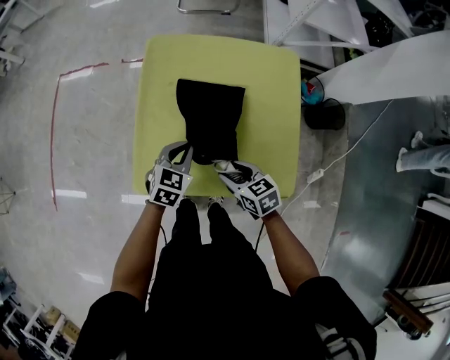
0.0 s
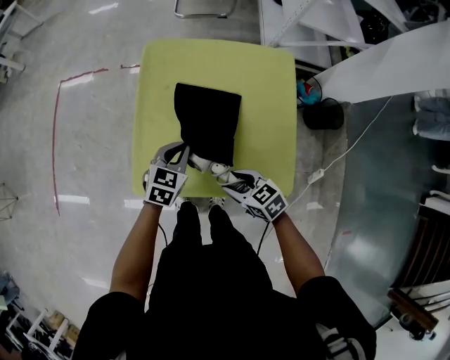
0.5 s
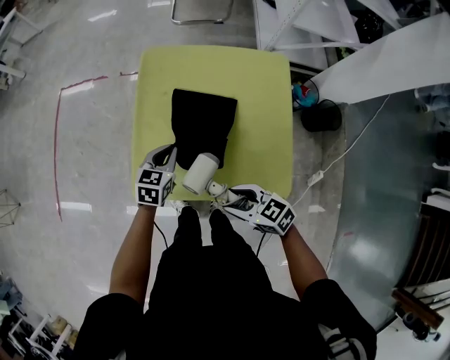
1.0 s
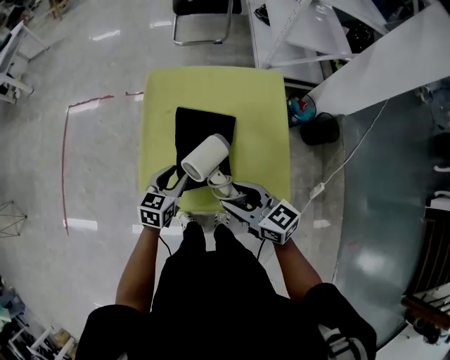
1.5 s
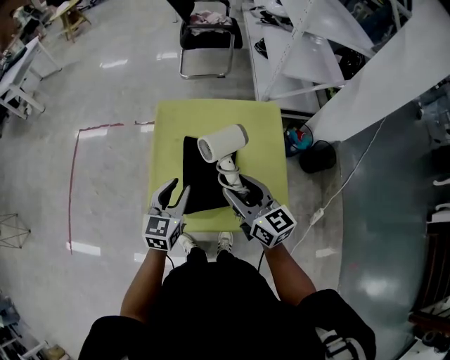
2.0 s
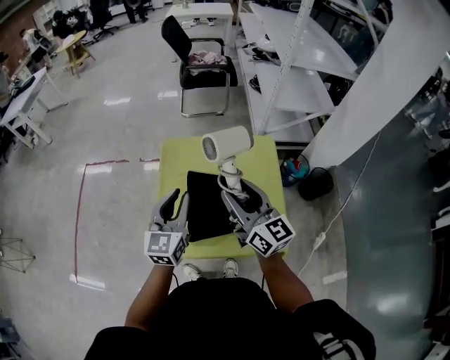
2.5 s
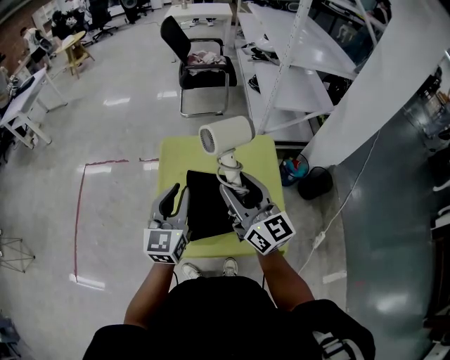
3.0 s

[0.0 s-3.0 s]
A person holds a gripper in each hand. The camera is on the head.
0.0 to 1.5 s: The left gripper opens its fingers, while the right gripper moves upward, roughly 15 cm, and rotates some 30 degrees.
1.5 to 3.0 s: The right gripper travels upward and forward by approximately 25 cm, and changes its angle by roughly 40 degrees. The left gripper is displaced upward by approximately 25 cm, and angles its fingers upward, by roughly 30 degrees.

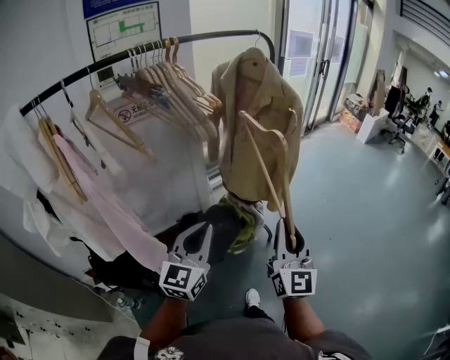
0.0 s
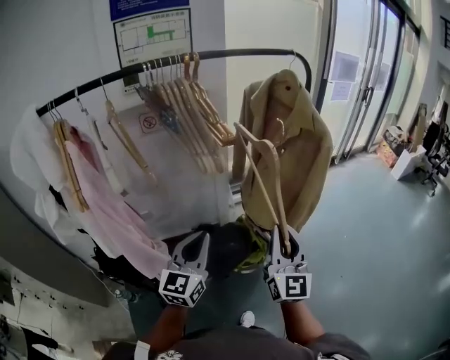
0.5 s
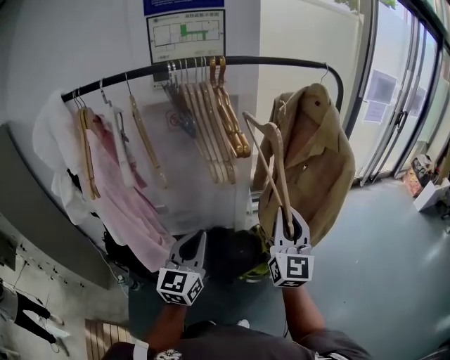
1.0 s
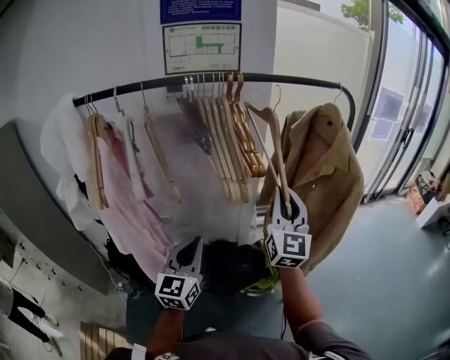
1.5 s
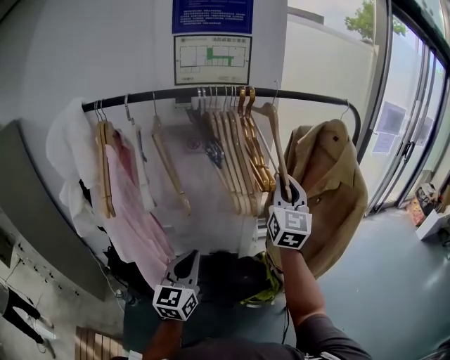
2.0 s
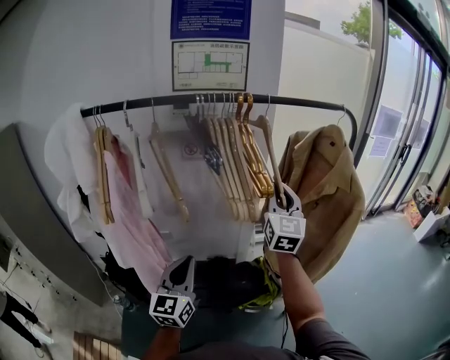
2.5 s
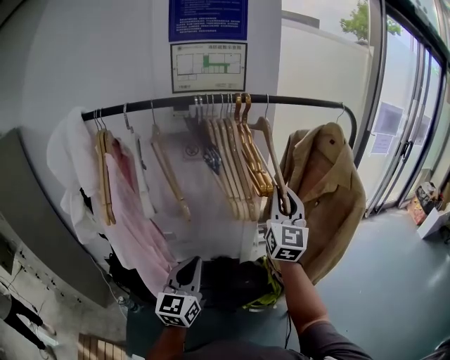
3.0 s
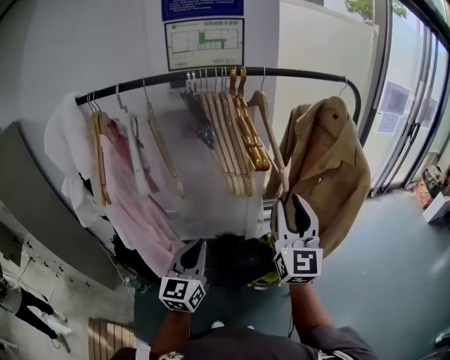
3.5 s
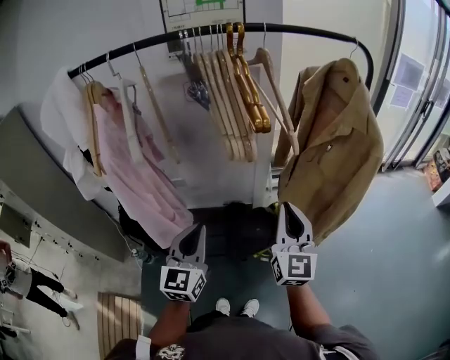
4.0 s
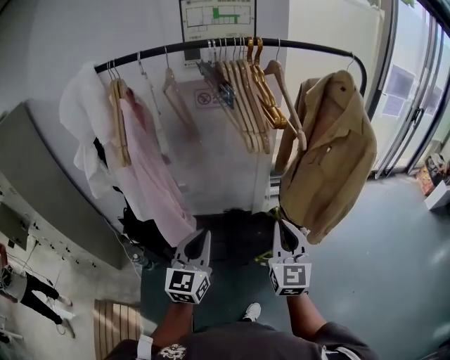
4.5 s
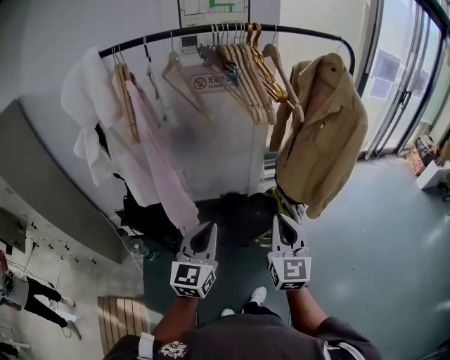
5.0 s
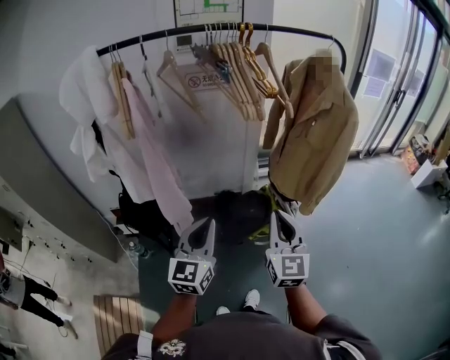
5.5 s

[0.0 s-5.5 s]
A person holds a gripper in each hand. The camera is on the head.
0.0 to 2.0 s: The left gripper moves about 10 cm, and swivels roughly 30 degrees, while the right gripper moves approximately 35 cm, and changes its angle by approximately 20 degrees.
2.0 to 3.5 s: The right gripper travels backward by some 10 cm.
3.5 to 5.5 s: The left gripper shifts roughly 15 cm backward. Meanwhile the right gripper is displaced backward and downward by about 25 cm, and closes up.

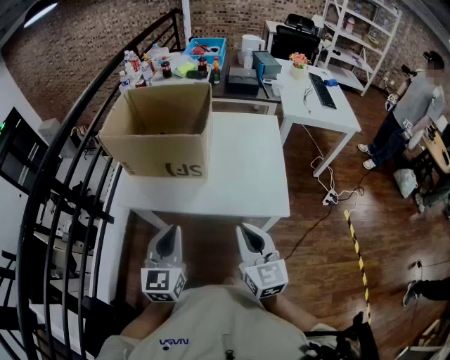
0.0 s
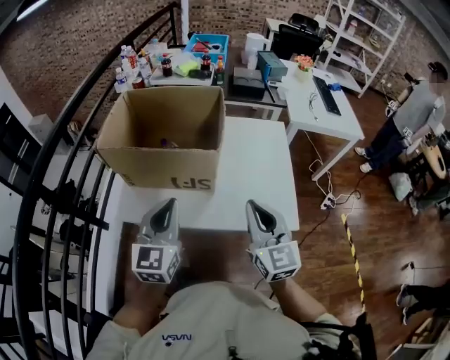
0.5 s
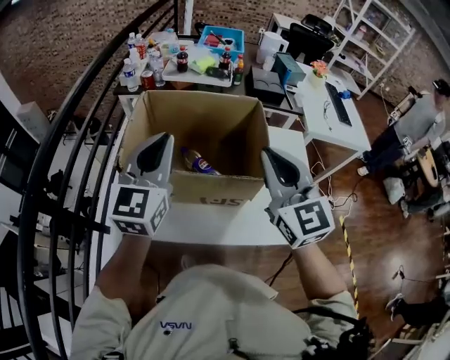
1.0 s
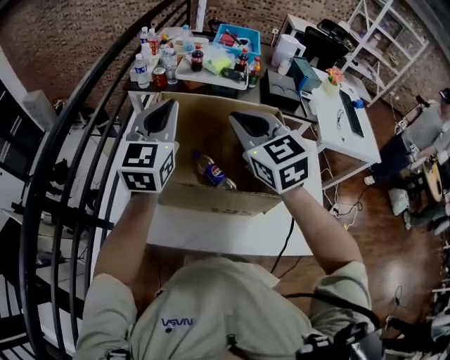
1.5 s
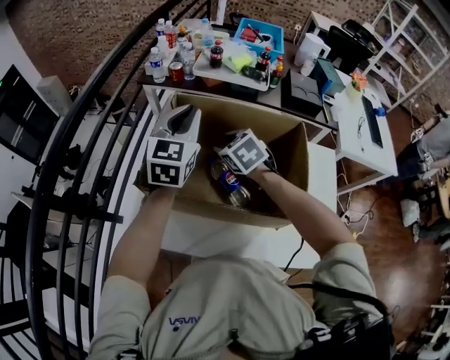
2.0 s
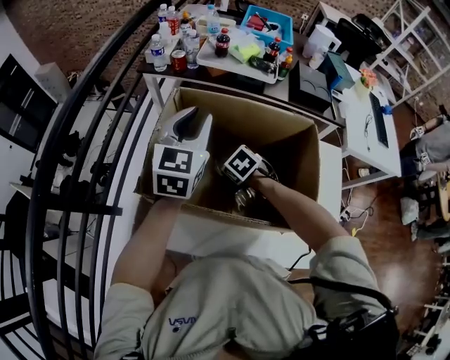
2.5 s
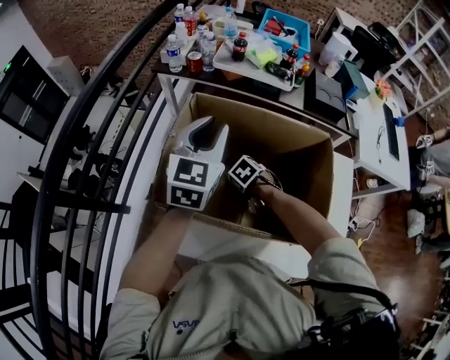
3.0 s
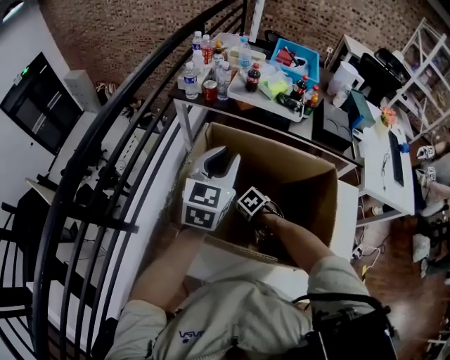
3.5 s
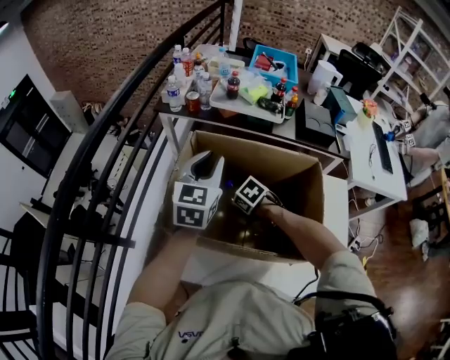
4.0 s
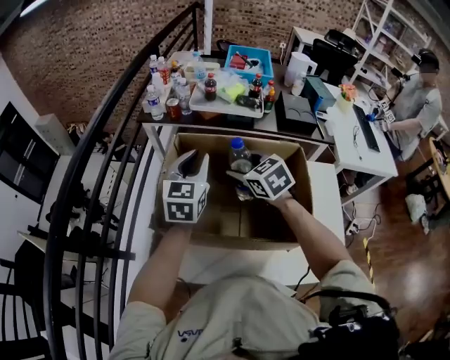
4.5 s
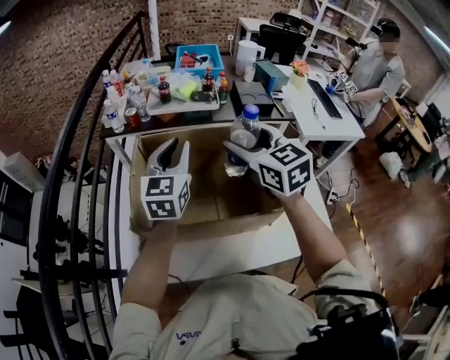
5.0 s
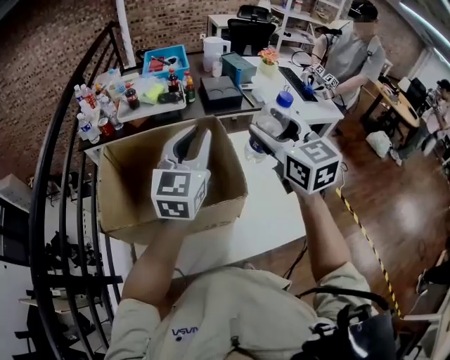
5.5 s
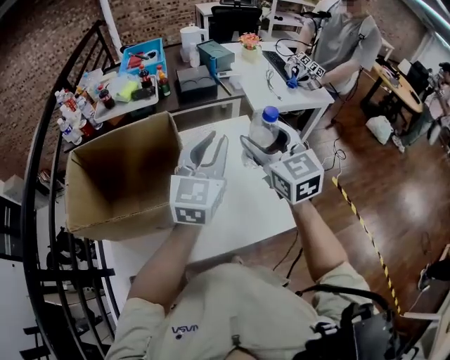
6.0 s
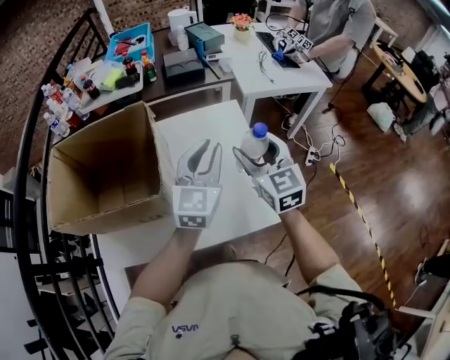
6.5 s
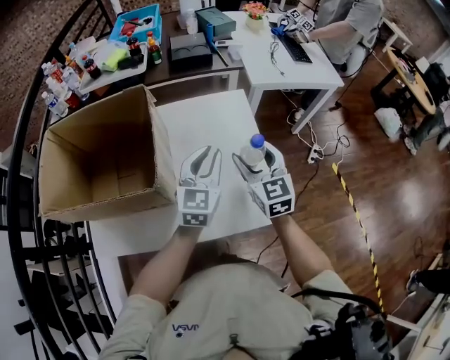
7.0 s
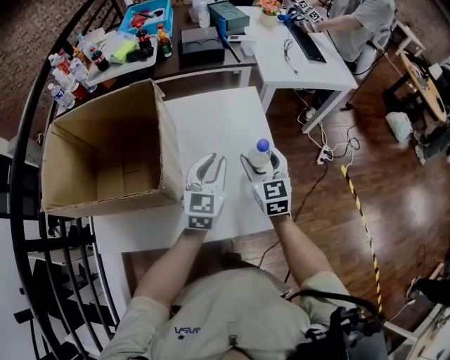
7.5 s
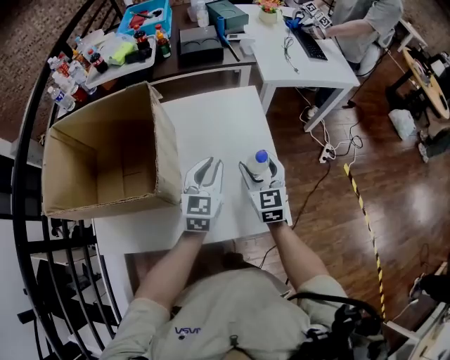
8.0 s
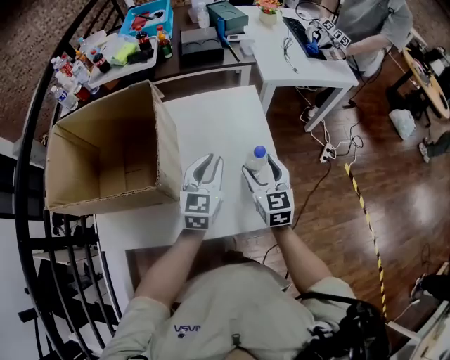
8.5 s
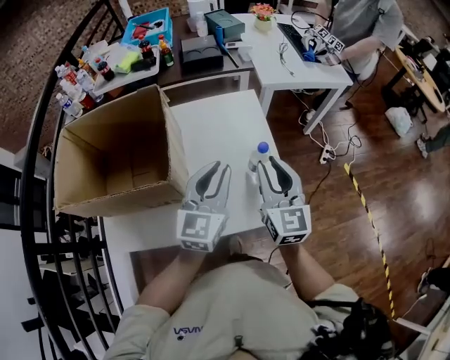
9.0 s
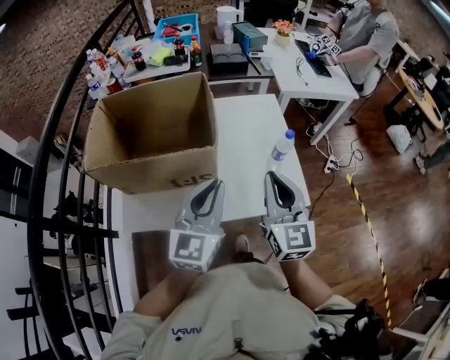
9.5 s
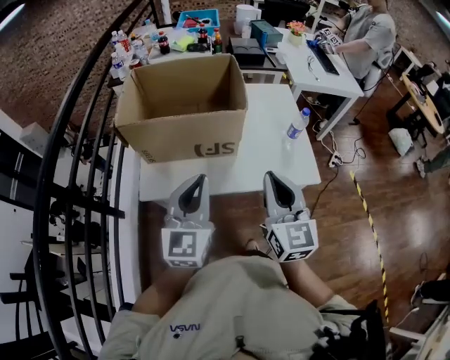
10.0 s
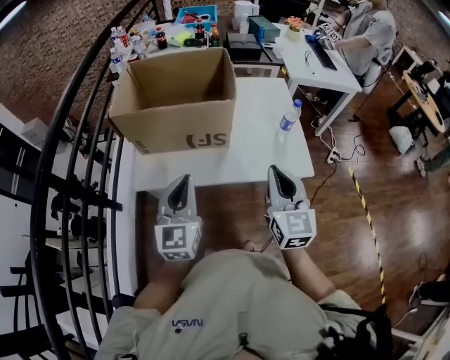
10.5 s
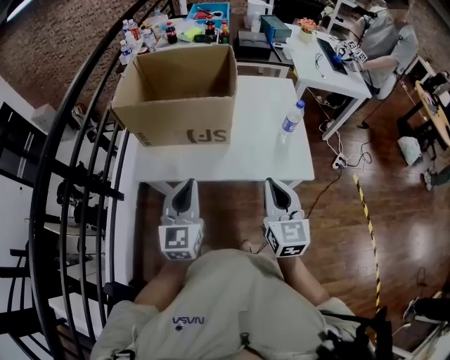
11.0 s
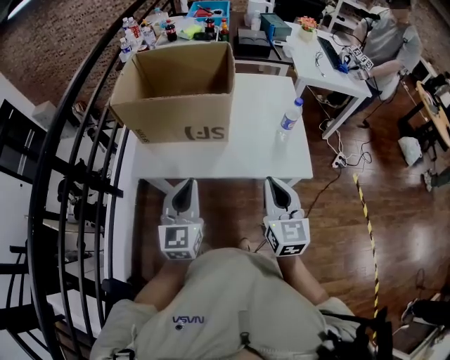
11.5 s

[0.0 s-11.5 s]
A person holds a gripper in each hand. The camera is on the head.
0.0 to 2.0 s: The pair of grippers is taken forward, approximately 60 cm. The right gripper tilts its fingers about 40 degrees downward, and opens.
2.0 to 4.0 s: The right gripper goes approximately 15 cm downward, swivels about 30 degrees, and opens its fingers.
4.0 to 6.0 s: The two grippers travel together, some 40 cm. The right gripper points its fingers approximately 60 degrees further upward; the left gripper turns by about 30 degrees.
6.0 to 7.5 s: Both grippers move downward, some 25 cm.
7.5 to 9.5 s: Both grippers move backward, upward and to the left, some 30 cm. The right gripper closes.
9.5 to 11.5 s: The right gripper moves backward and downward, roughly 15 cm, while the left gripper travels backward, to the left and downward by about 20 cm, and changes its angle by roughly 20 degrees.

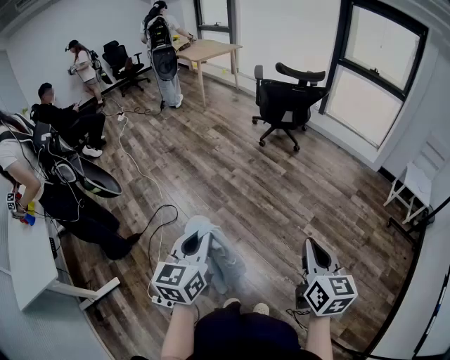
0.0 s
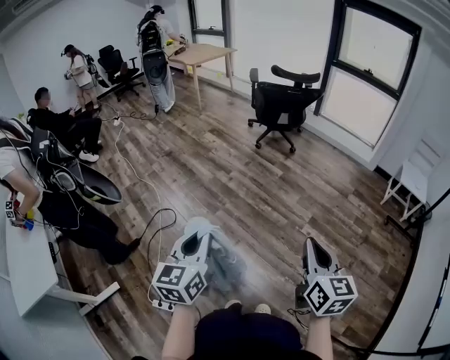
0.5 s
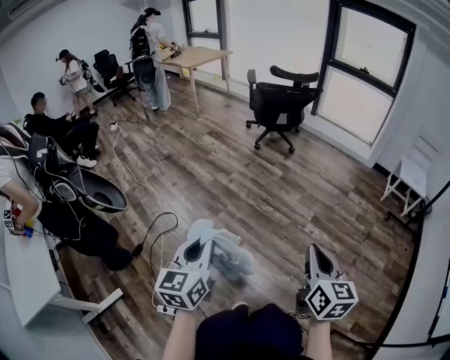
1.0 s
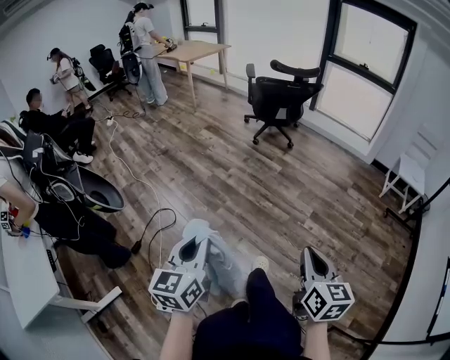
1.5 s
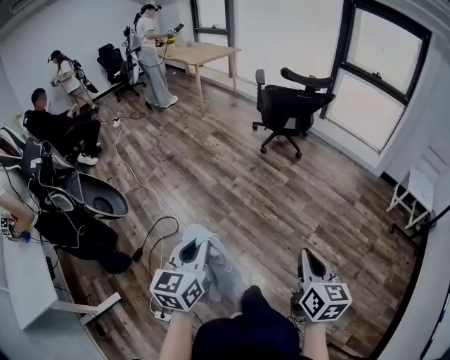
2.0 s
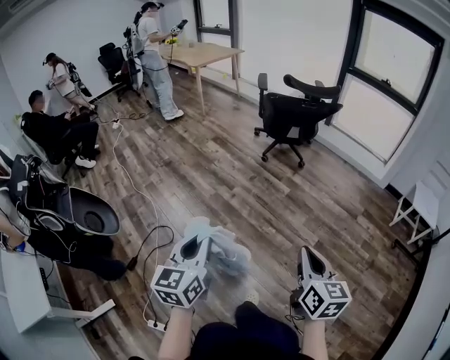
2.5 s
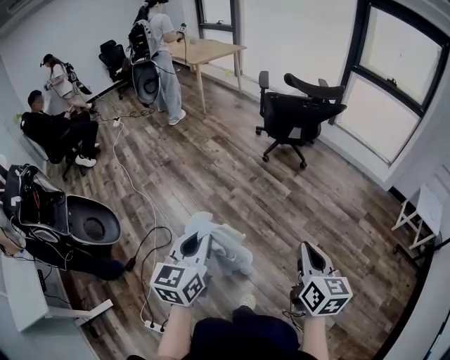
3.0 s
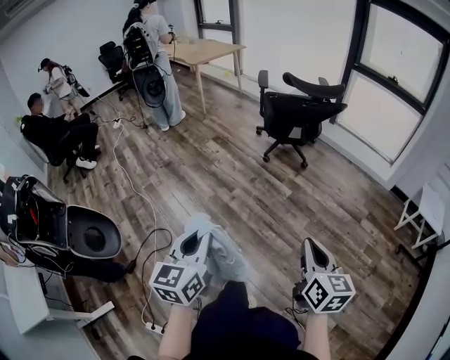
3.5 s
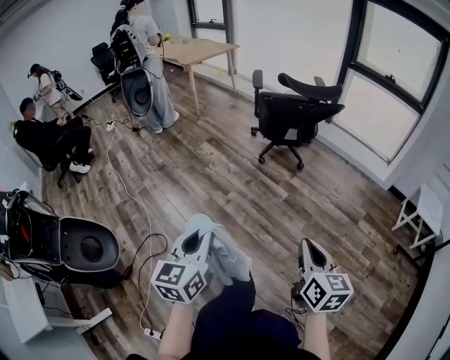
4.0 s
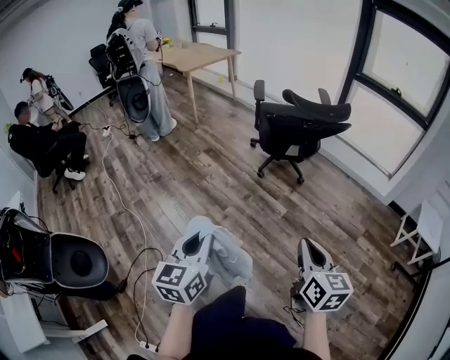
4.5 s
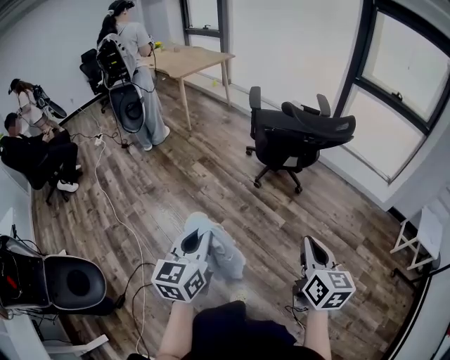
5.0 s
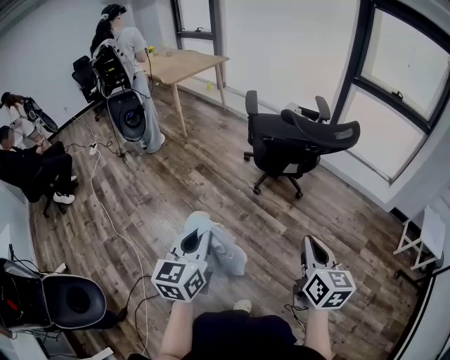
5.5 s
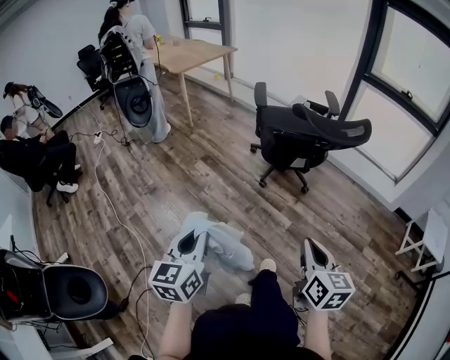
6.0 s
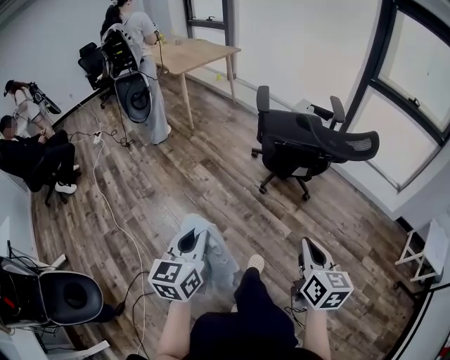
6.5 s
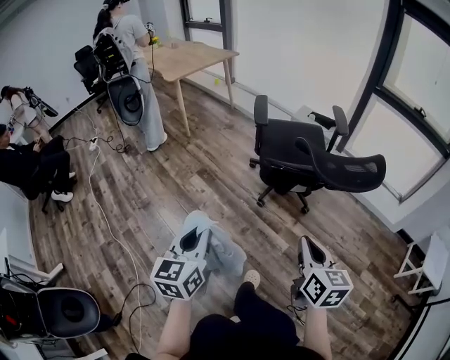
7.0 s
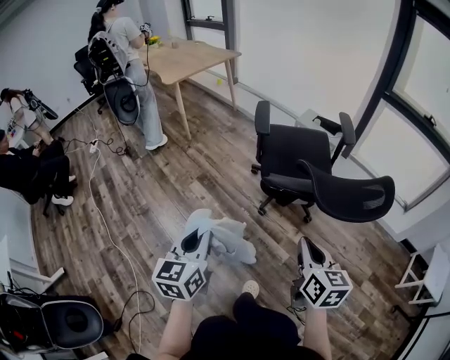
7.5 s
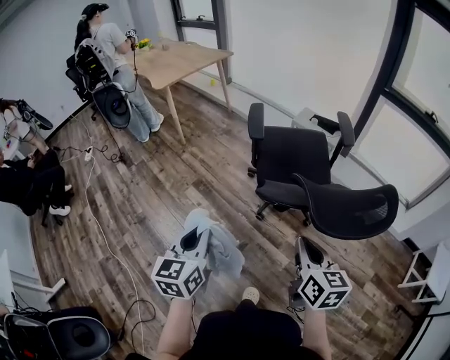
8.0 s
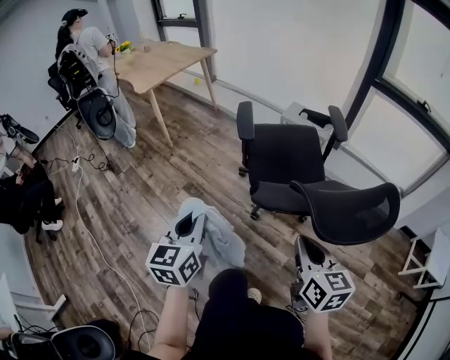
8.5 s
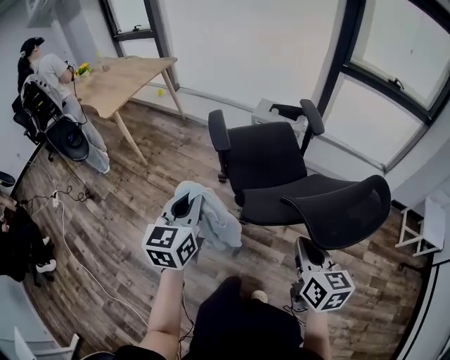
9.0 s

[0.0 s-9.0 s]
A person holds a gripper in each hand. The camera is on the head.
0.0 to 2.0 s: Both grippers travel together forward and to the left, approximately 10 cm.
2.0 to 4.5 s: Both grippers move forward, approximately 40 cm.
4.5 to 7.0 s: Both grippers travel together forward, approximately 35 cm.
7.0 to 9.0 s: The right gripper goes some 20 cm forward. The left gripper shifts approximately 35 cm forward.
